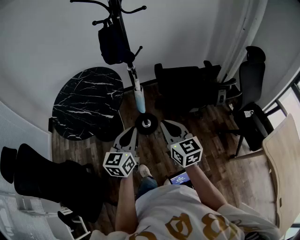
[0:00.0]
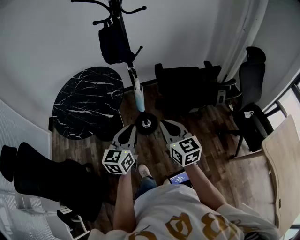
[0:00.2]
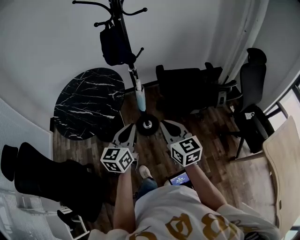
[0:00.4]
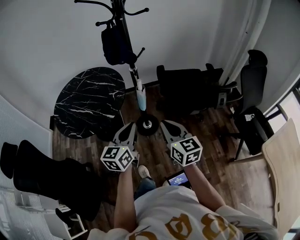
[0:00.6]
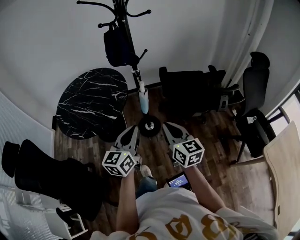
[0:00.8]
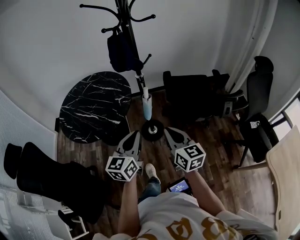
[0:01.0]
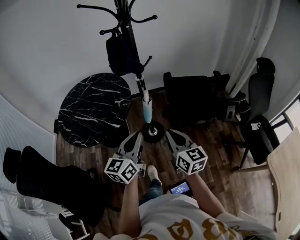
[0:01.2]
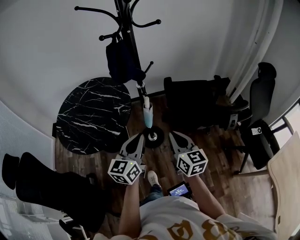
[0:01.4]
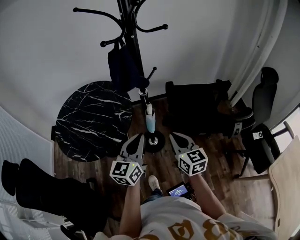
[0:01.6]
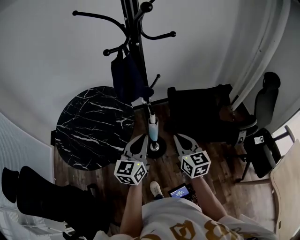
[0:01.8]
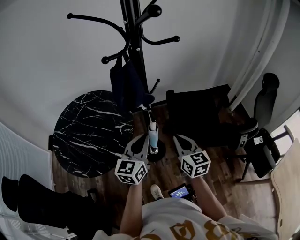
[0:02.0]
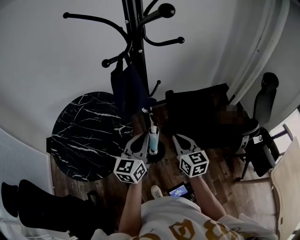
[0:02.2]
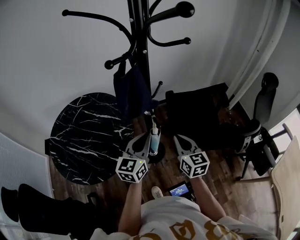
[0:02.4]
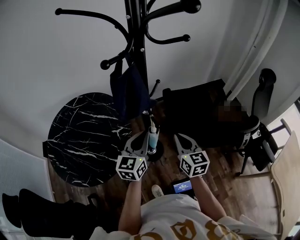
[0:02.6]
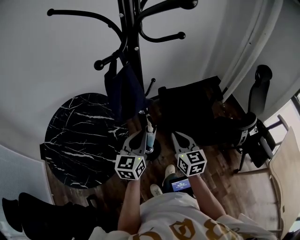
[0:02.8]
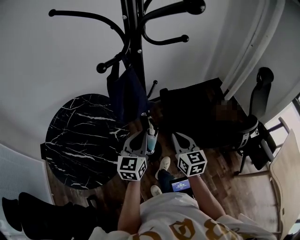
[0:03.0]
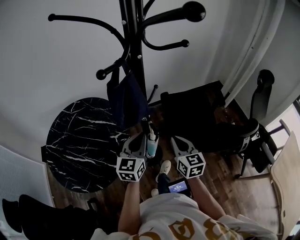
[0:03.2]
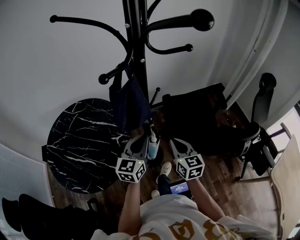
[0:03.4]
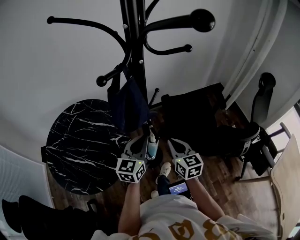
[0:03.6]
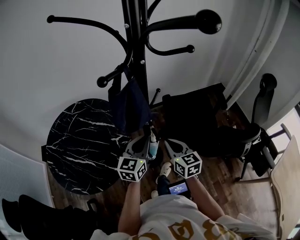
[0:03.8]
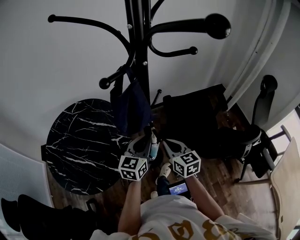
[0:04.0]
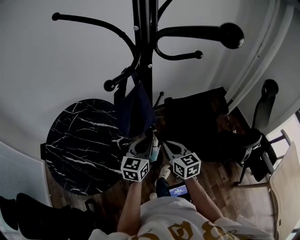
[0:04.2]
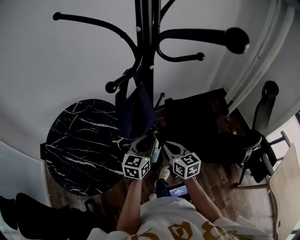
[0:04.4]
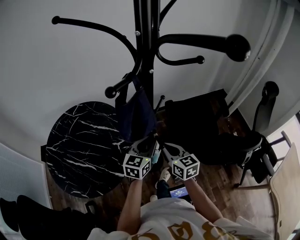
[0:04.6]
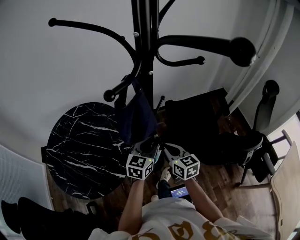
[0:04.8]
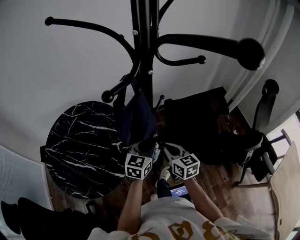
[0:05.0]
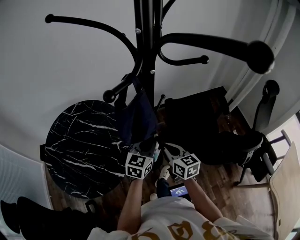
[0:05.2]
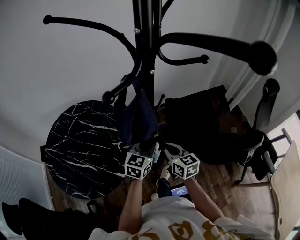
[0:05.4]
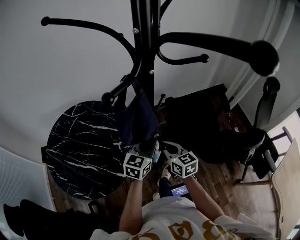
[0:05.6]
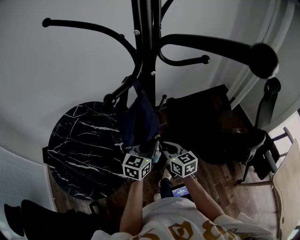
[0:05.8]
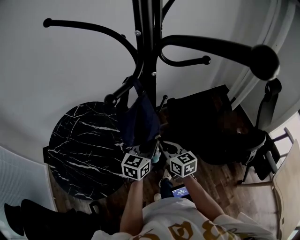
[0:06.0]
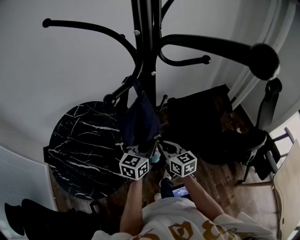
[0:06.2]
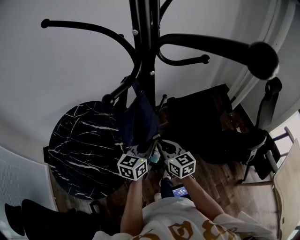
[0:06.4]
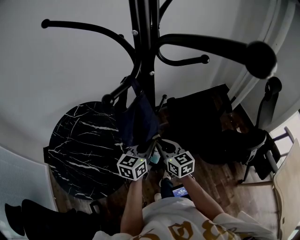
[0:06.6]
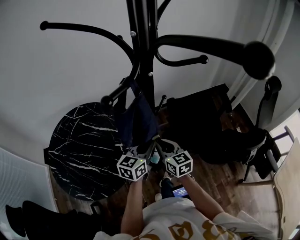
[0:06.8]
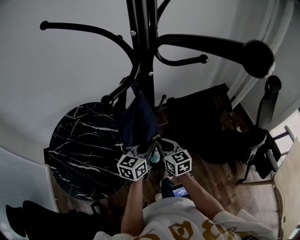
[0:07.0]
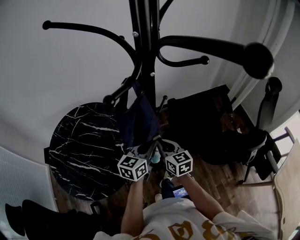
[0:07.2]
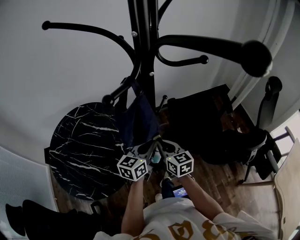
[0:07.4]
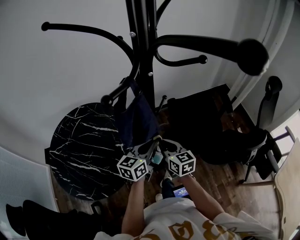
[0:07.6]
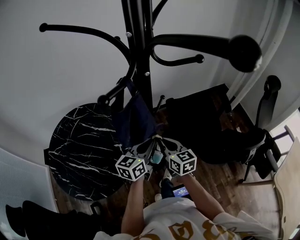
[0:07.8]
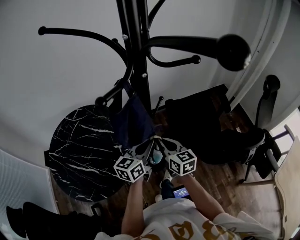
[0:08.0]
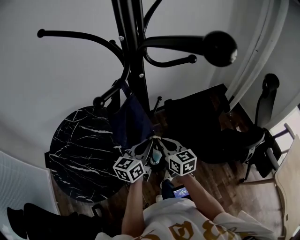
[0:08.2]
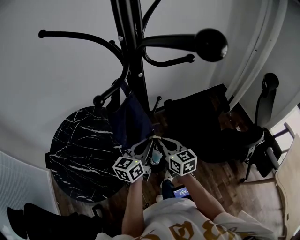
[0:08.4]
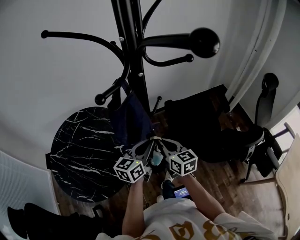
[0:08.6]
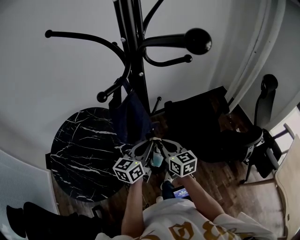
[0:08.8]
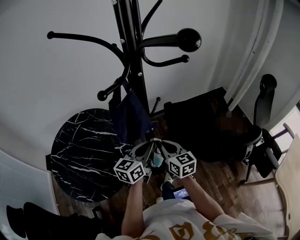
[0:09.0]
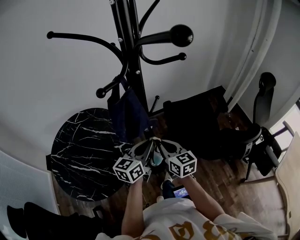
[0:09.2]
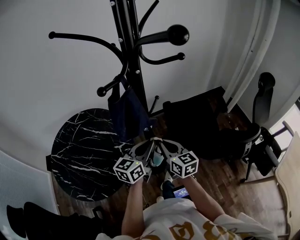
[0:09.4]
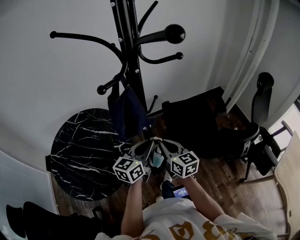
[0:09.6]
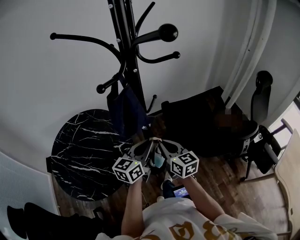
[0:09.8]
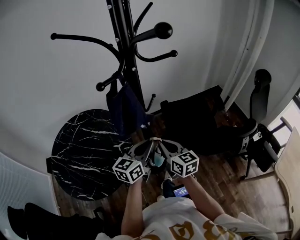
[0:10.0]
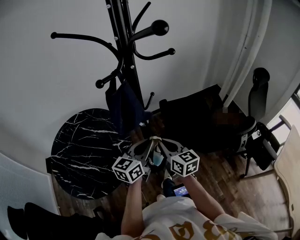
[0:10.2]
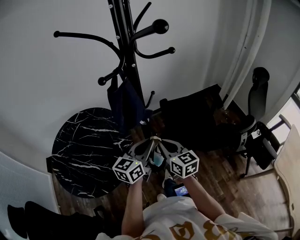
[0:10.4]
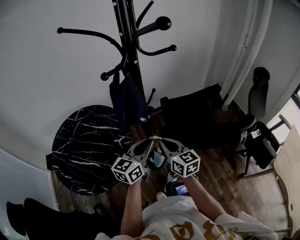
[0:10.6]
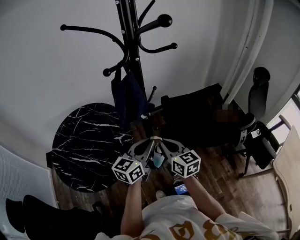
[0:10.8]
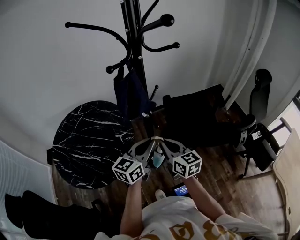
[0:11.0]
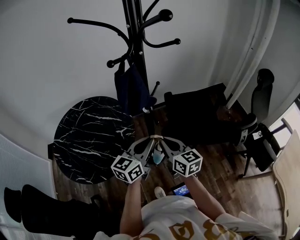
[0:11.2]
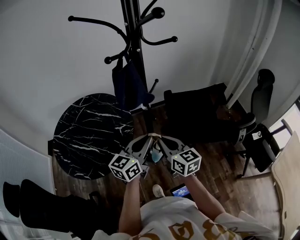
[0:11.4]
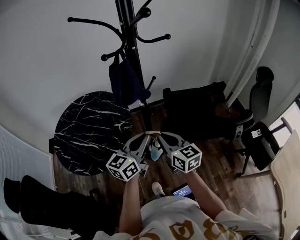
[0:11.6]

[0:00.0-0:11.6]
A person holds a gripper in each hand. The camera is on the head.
0:00.0 to 0:01.4: The grippers both shift forward by approximately 10 cm.
0:01.4 to 0:02.8: Both grippers move forward, roughly 20 cm.
0:02.8 to 0:04.4: The right gripper moves to the left and forward, some 10 cm. Meanwhile the left gripper travels forward by some 5 cm.
0:04.4 to 0:08.8: The grippers make only small movements.
0:08.8 to 0:10.2: Both grippers move backward, roughly 5 cm.
0:10.2 to 0:11.6: Both grippers travel together backward, approximately 10 cm.

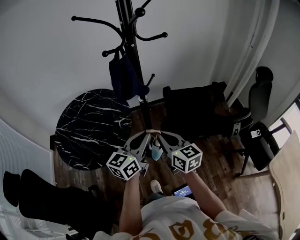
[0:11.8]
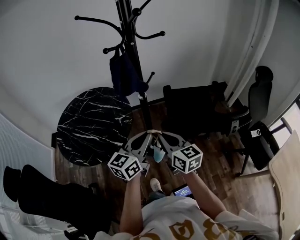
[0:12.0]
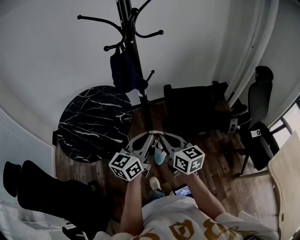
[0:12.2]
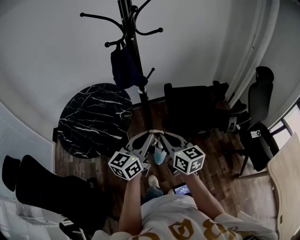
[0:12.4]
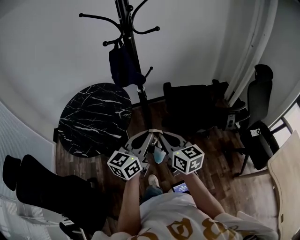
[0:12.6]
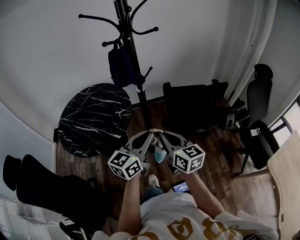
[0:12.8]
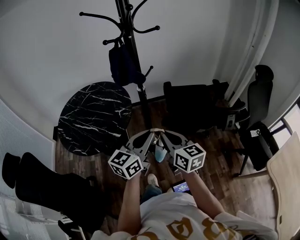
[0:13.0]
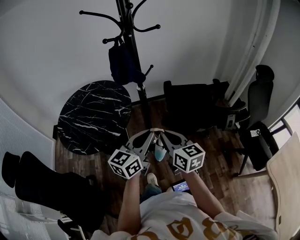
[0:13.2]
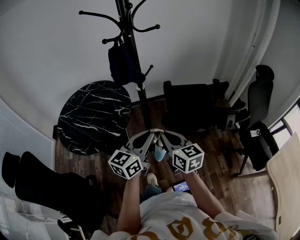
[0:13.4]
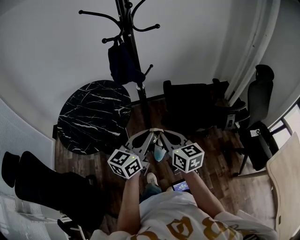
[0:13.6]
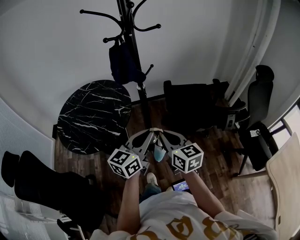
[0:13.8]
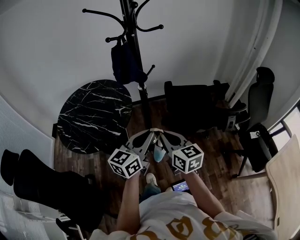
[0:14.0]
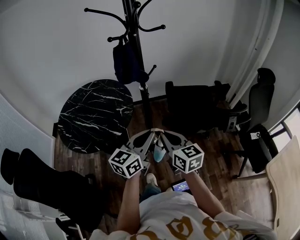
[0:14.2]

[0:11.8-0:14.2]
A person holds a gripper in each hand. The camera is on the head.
0:11.8 to 0:13.0: The left gripper goes roughly 10 cm backward and to the right; the right gripper is displaced backward by roughly 10 cm.
0:13.0 to 0:14.2: The grippers move only a little.

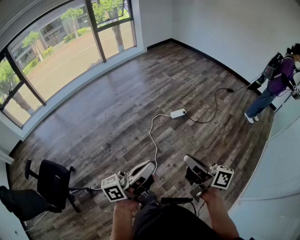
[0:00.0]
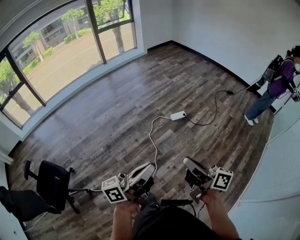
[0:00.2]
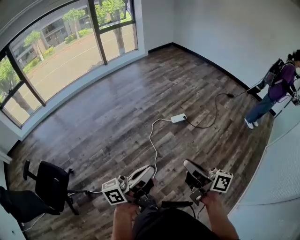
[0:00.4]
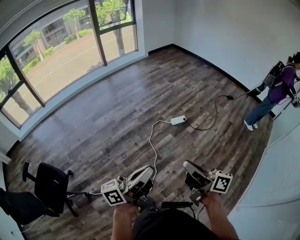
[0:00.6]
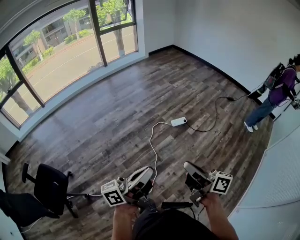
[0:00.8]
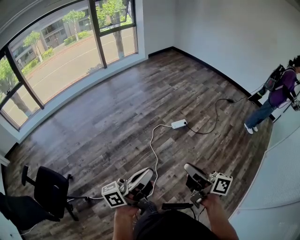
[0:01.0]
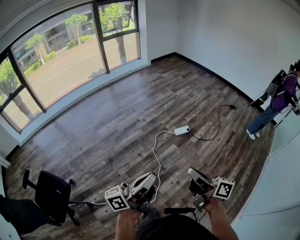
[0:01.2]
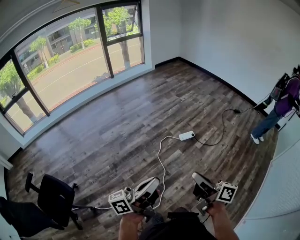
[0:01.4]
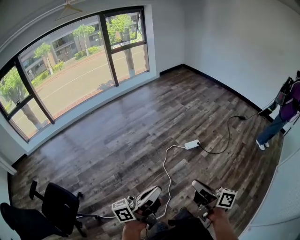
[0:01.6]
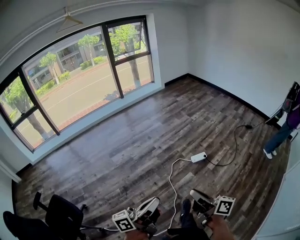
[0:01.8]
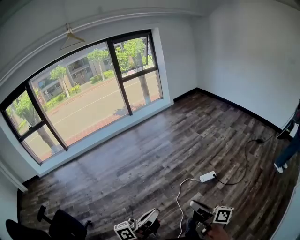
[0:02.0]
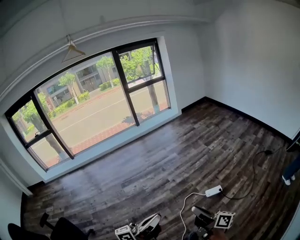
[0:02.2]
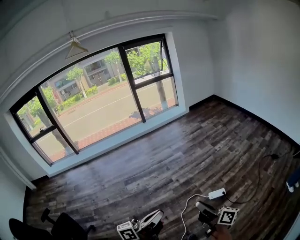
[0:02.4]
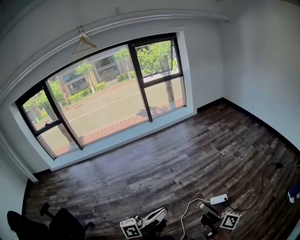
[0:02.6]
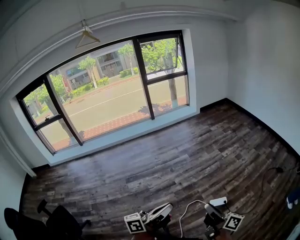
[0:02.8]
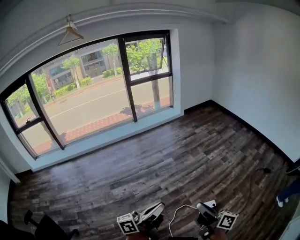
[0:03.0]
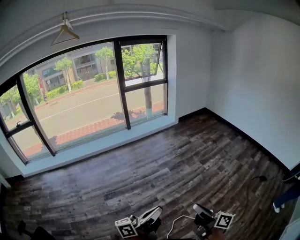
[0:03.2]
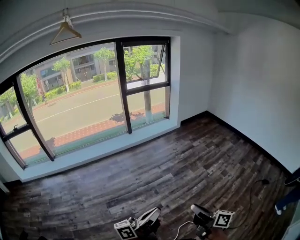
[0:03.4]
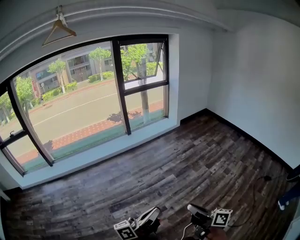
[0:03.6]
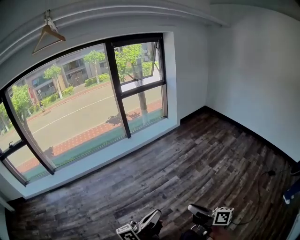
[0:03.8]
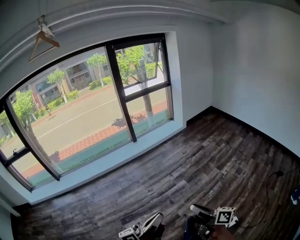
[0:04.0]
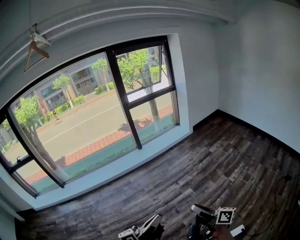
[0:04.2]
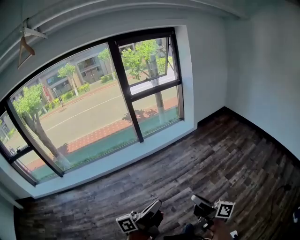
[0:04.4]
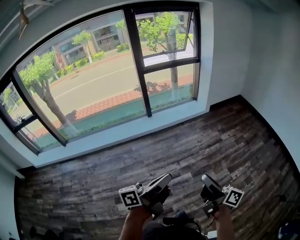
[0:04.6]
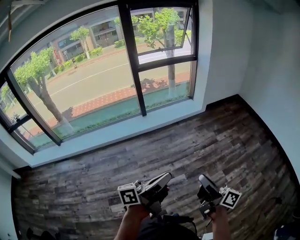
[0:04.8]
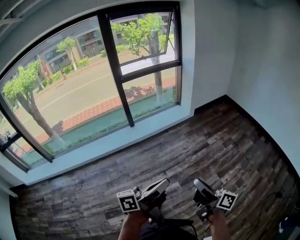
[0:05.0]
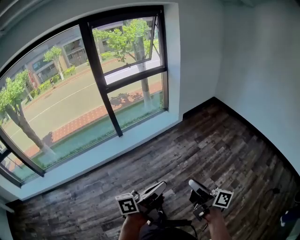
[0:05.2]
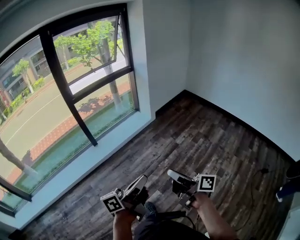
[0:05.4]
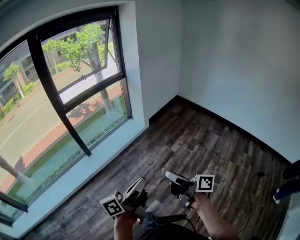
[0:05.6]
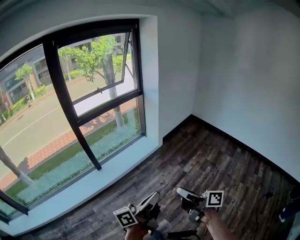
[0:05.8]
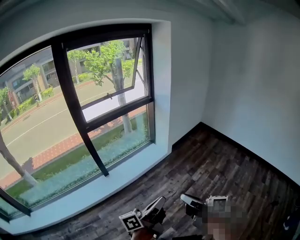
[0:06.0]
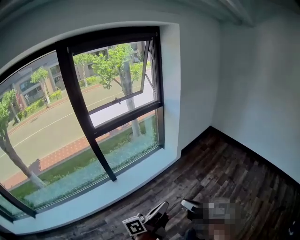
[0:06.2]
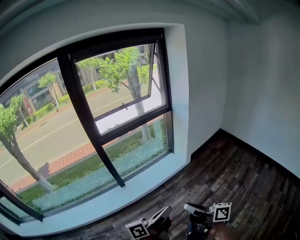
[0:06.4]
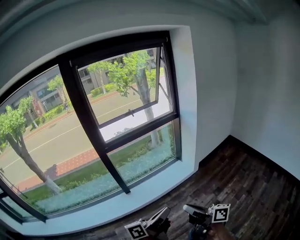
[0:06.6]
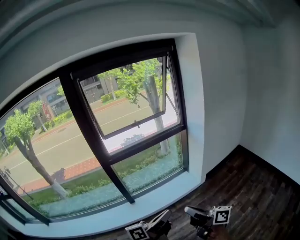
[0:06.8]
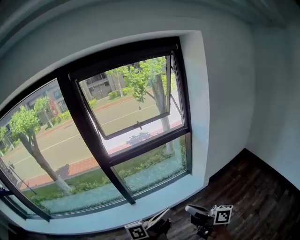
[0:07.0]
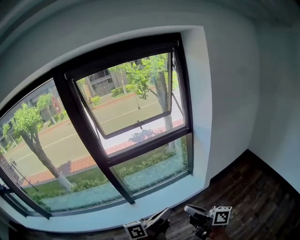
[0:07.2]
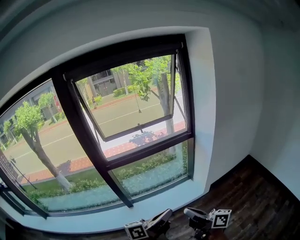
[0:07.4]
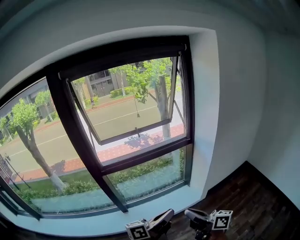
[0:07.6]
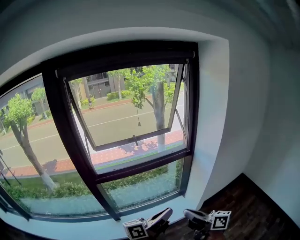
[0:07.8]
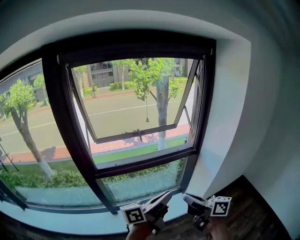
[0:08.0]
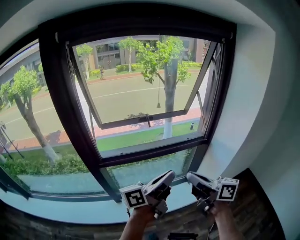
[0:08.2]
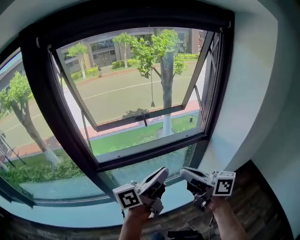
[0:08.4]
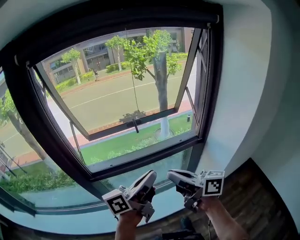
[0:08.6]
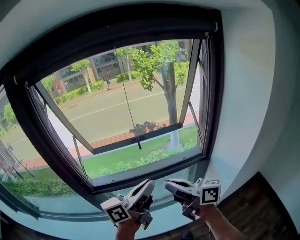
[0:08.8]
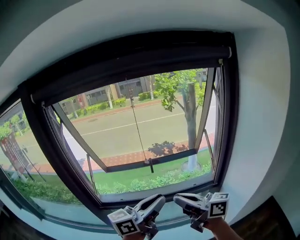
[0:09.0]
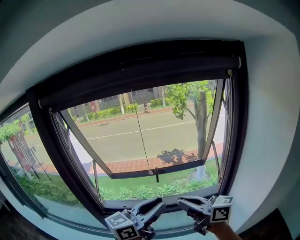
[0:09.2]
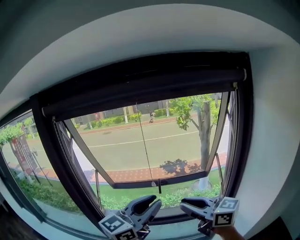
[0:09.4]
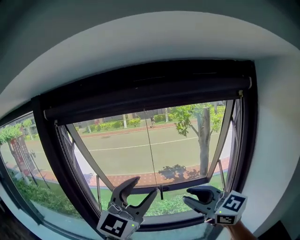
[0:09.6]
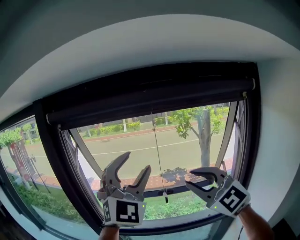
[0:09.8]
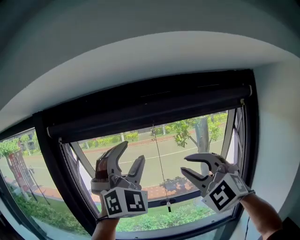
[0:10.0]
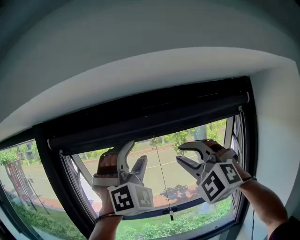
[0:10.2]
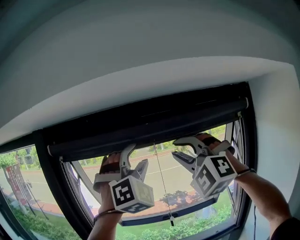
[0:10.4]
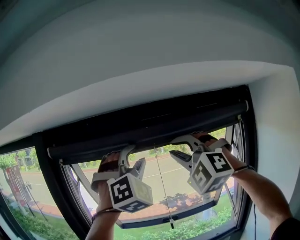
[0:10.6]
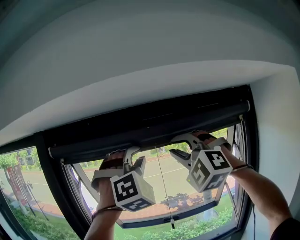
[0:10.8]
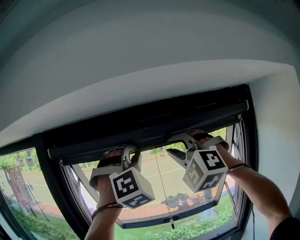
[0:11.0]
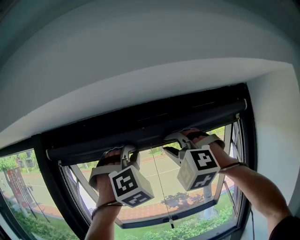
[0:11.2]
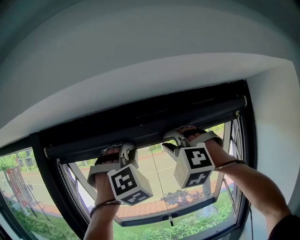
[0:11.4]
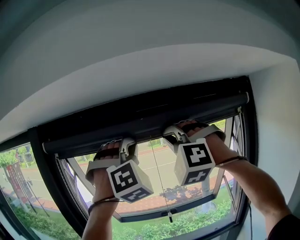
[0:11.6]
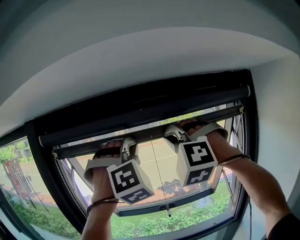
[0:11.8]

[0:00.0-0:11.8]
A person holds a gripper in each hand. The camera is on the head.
0:00.0 to 0:01.4: The left gripper heads to the left and forward, covering approximately 10 cm. Meanwhile the right gripper travels forward and to the left by approximately 10 cm.
0:01.4 to 0:03.0: The pair of grippers is taken forward, some 50 cm.
0:03.0 to 0:04.4: Both grippers are carried forward, approximately 60 cm.
0:04.4 to 0:06.0: The two grippers travel together, forward, roughly 50 cm.
0:06.0 to 0:07.4: The grippers both shift forward by about 35 cm. The left gripper rotates about 20 degrees.
0:07.4 to 0:08.8: Both grippers travel together forward, roughly 40 cm.
0:08.8 to 0:10.4: The grippers both shift upward and forward by about 40 cm. The right gripper rolls counterclockwise, seen from behind, by about 130 degrees, and opens up, while the left gripper rotates around the line of its fingers by roughly 130 degrees, clockwise from behind, and opens up.
0:10.4 to 0:11.8: The left gripper closes up.
